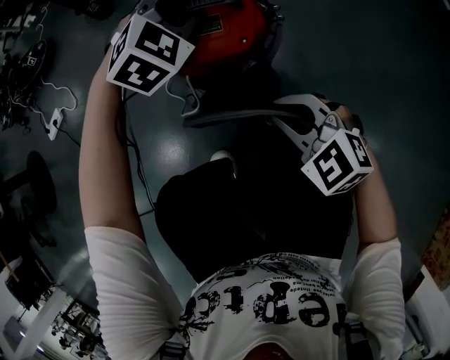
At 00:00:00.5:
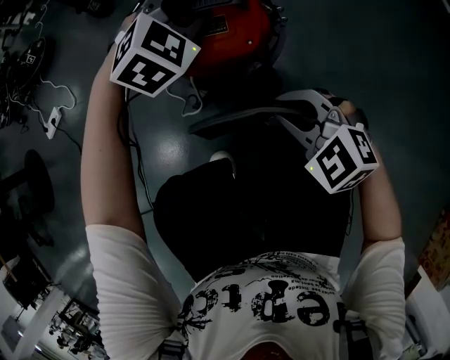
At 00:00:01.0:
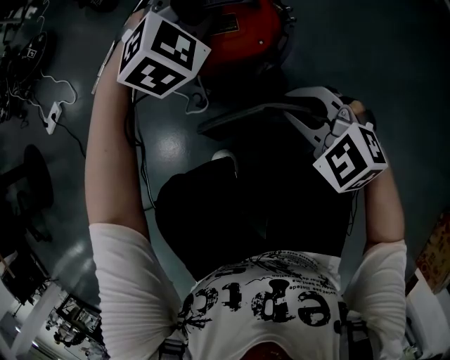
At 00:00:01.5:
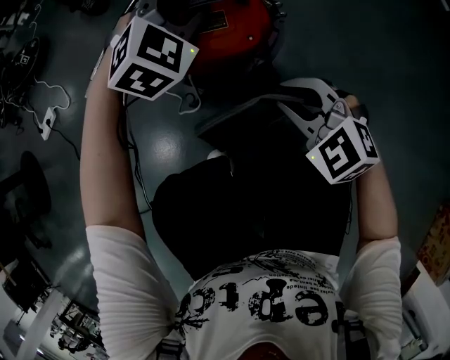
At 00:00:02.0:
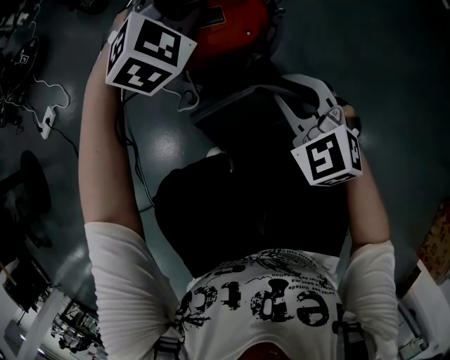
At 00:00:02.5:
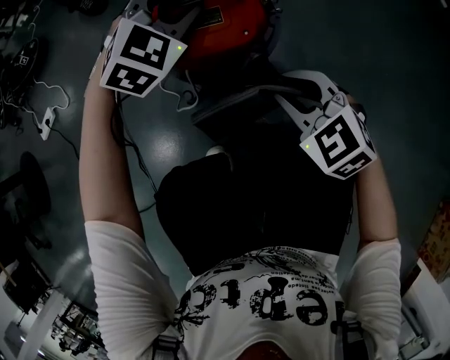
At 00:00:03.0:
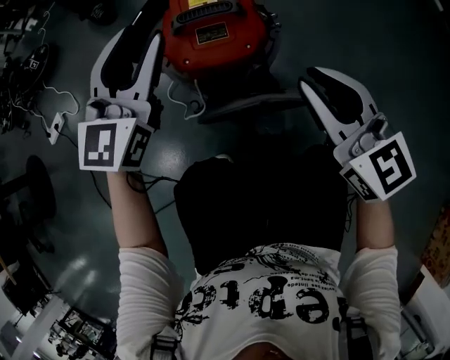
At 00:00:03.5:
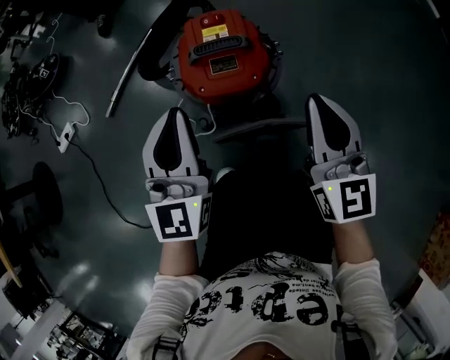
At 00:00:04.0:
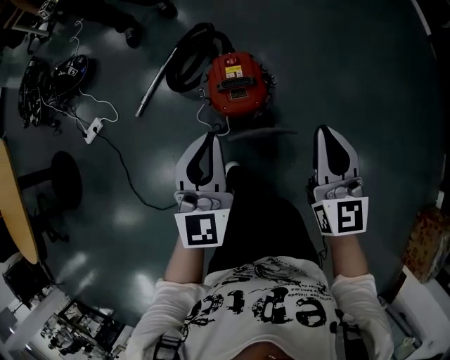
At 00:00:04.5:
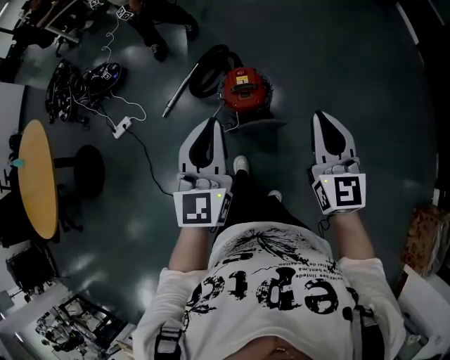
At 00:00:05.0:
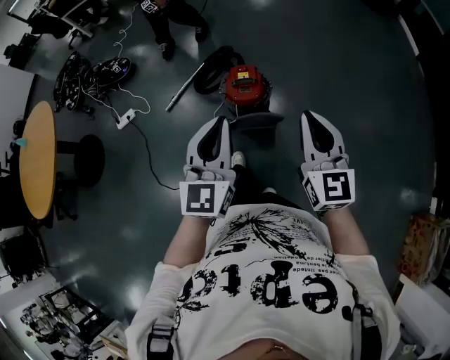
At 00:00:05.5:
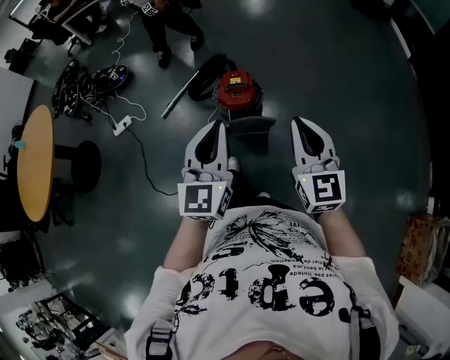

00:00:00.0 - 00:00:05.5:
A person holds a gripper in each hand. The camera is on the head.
00:00:00.0 - 00:00:02.0: The grippers stay close to where they were, moving slightly.
00:00:02.0 - 00:00:03.5: The right gripper is displaced upward by roughly 20 cm, and angles its fingers upward, by approximately 30 degrees; the left gripper goes some 25 cm backward, upward and to the left, tips its fingers upward by some 40 degrees, and closes up.
00:00:03.5 - 00:00:05.5: The grippers both shift upward and backward by some 60 cm.

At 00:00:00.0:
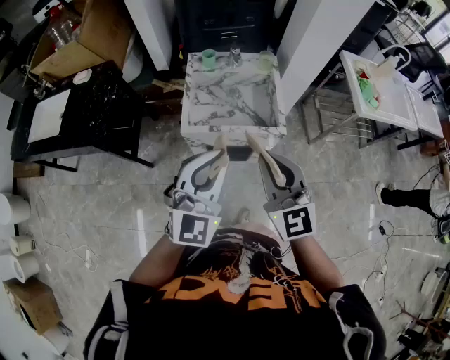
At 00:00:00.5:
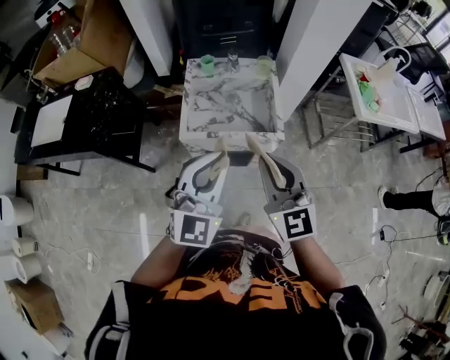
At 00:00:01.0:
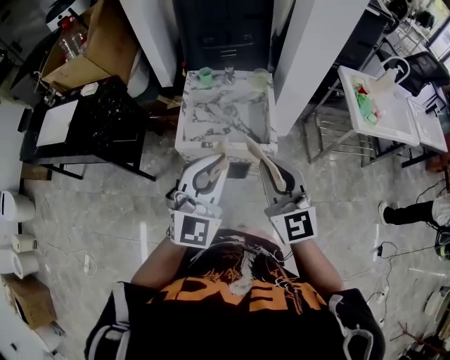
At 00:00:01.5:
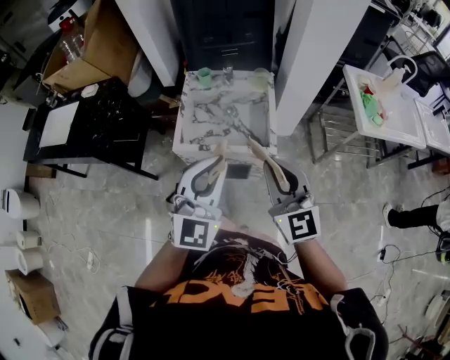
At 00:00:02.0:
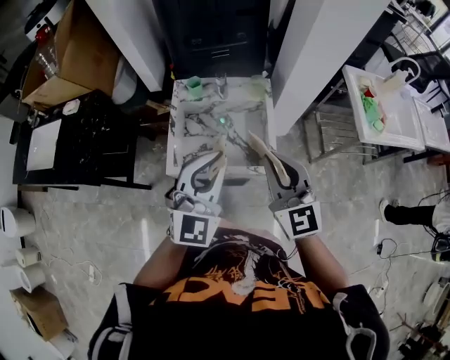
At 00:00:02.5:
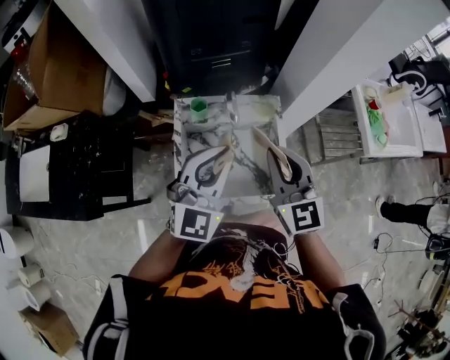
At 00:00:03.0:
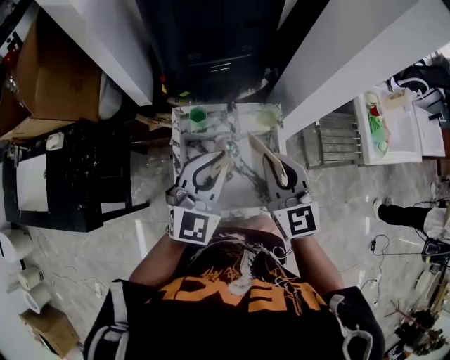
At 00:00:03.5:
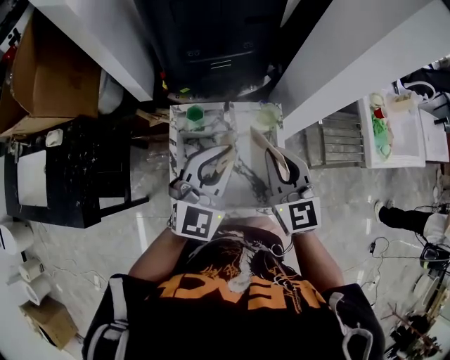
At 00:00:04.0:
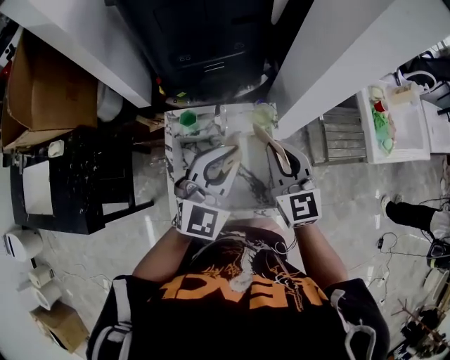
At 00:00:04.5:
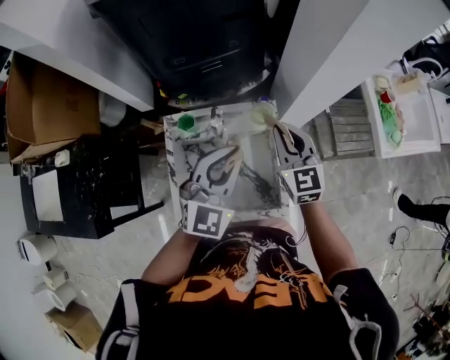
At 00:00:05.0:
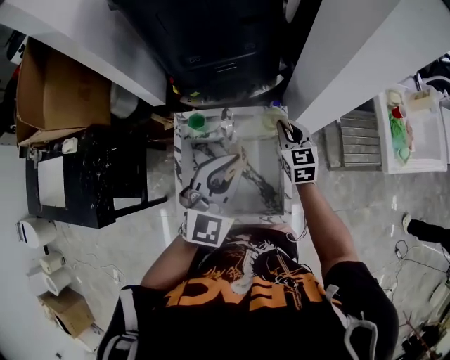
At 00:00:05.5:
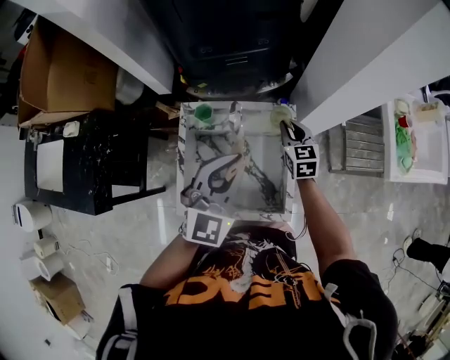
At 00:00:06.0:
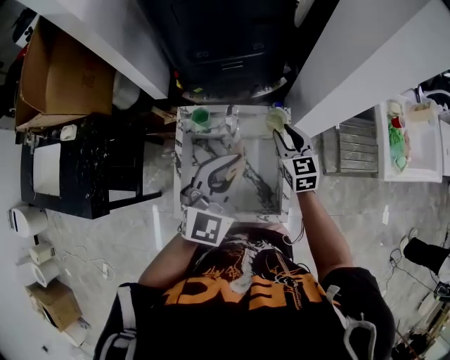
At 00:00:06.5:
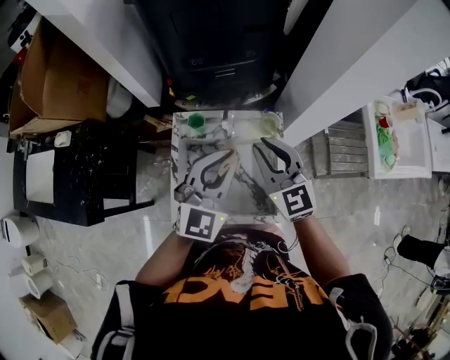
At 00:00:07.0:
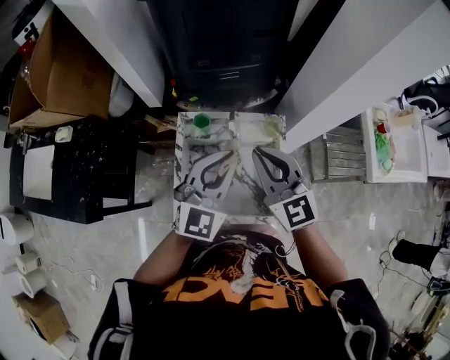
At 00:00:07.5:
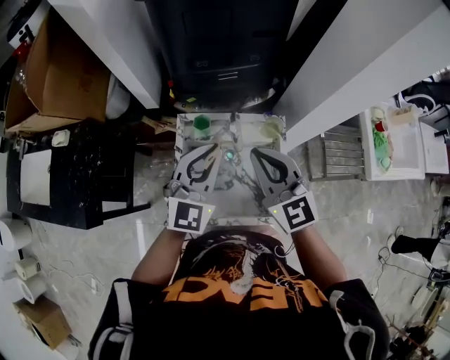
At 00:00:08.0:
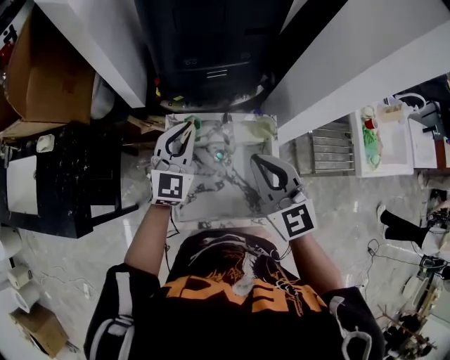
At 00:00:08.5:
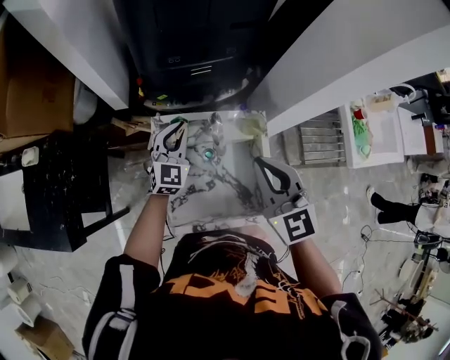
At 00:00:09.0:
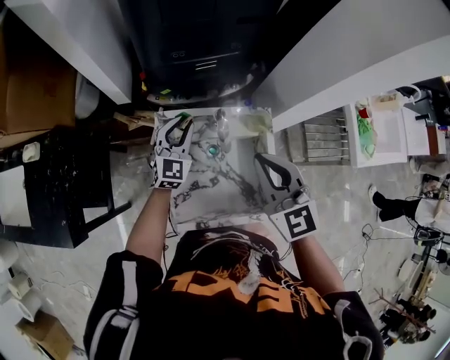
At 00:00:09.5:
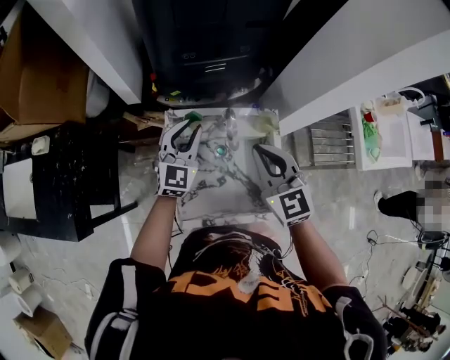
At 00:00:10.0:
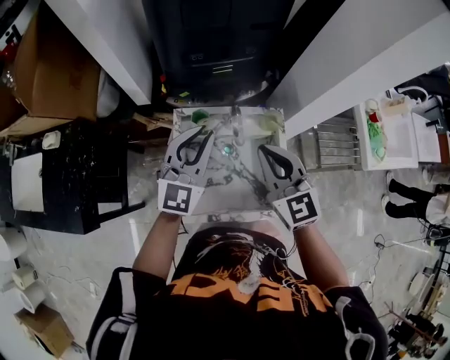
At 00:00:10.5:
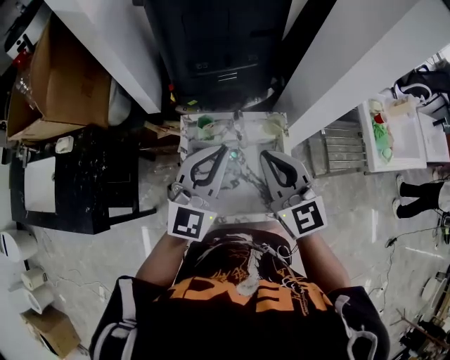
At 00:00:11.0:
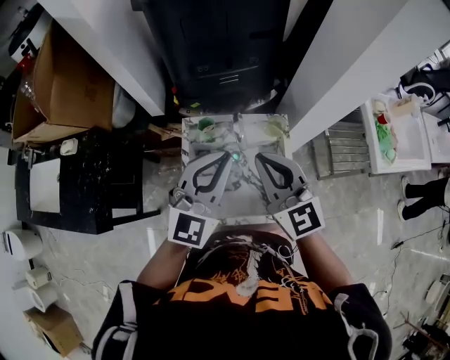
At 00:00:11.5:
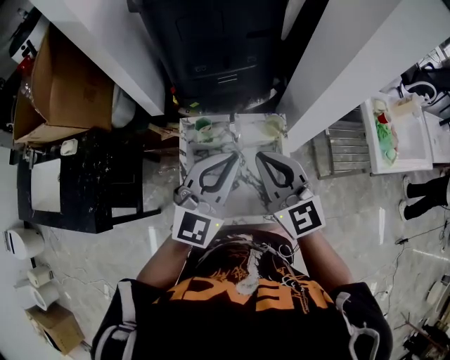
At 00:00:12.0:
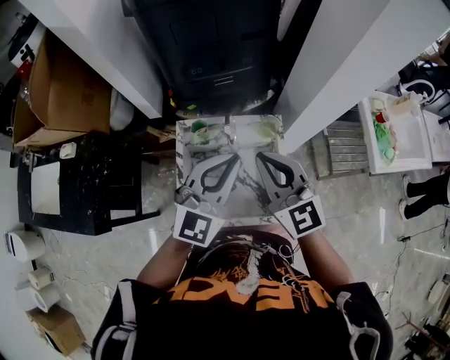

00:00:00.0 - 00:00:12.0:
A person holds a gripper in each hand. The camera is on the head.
00:00:00.0 - 00:00:02.0: Both grippers move forward and to the right, roughly 20 cm.
00:00:02.0 - 00:00:04.0: The two grippers go about 25 cm forward.
00:00:04.0 - 00:00:06.0: The right gripper is displaced downward and forward by about 15 cm, and opens.
00:00:06.0 - 00:00:08.0: The right gripper heads upward, to the left and backward, covering roughly 25 cm, changes its angle by about 20 degrees, and closes. Meanwhile the left gripper travels to the left and forward by approximately 20 cm.
00:00:08.0 - 00:00:10.0: The left gripper moves backward, approximately 5 cm, and moves approximately 15 cm downward and comes back.
00:00:10.0 - 00:00:12.0: The left gripper is displaced to the right, backward and upward by approximately 15 cm. Meanwhile the right gripper shifts by about 5 cm.

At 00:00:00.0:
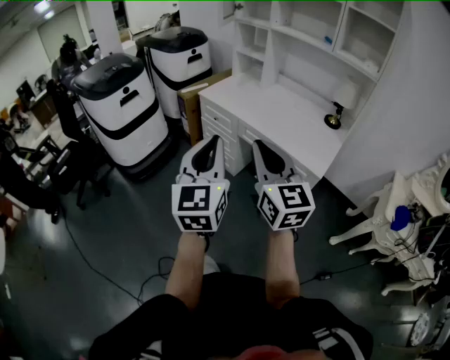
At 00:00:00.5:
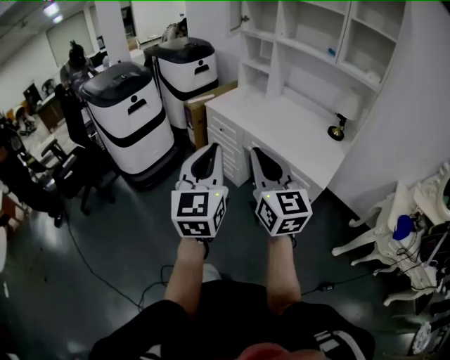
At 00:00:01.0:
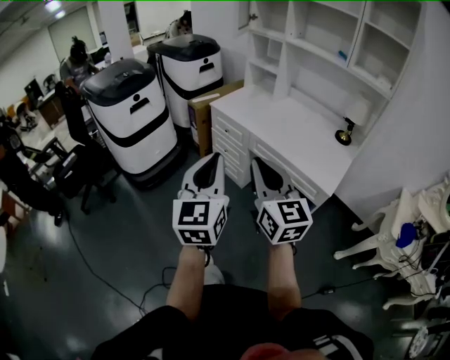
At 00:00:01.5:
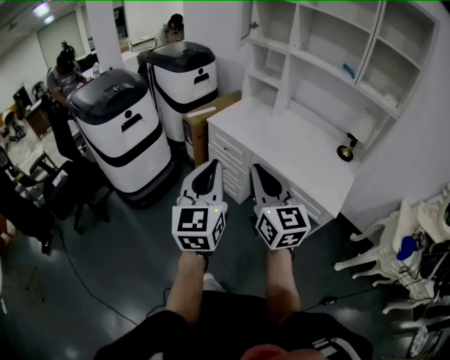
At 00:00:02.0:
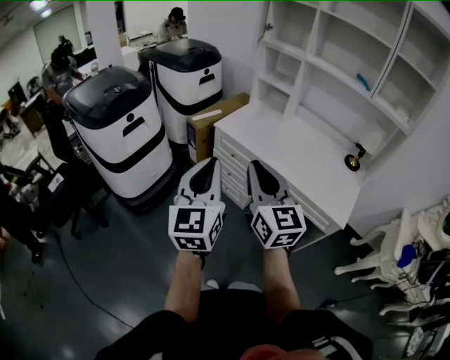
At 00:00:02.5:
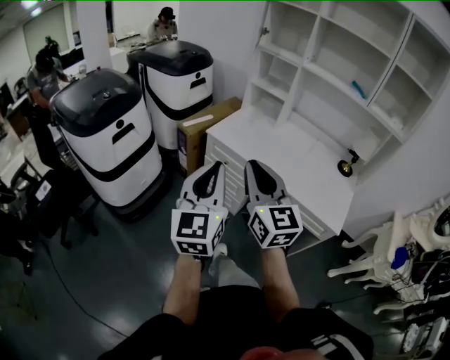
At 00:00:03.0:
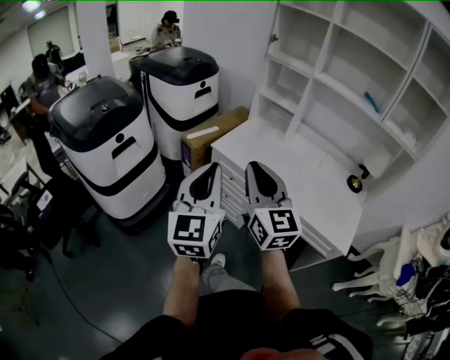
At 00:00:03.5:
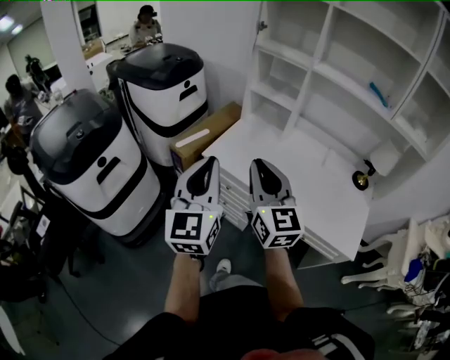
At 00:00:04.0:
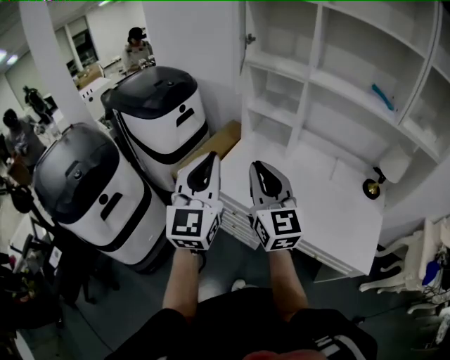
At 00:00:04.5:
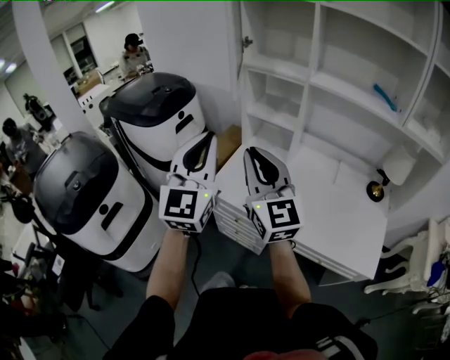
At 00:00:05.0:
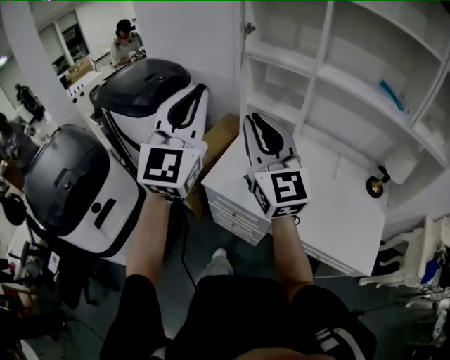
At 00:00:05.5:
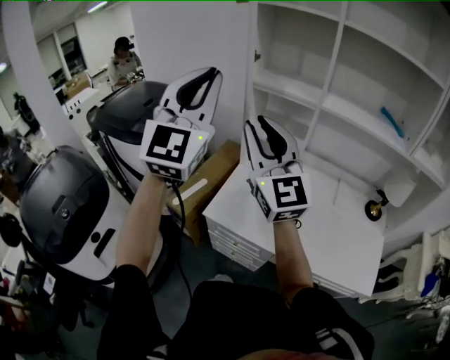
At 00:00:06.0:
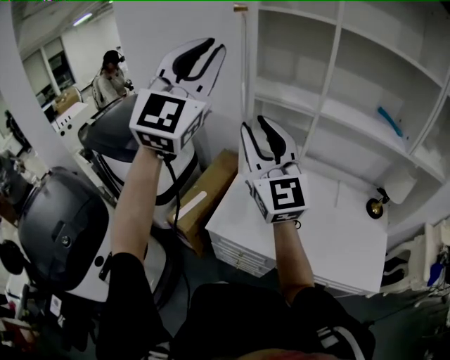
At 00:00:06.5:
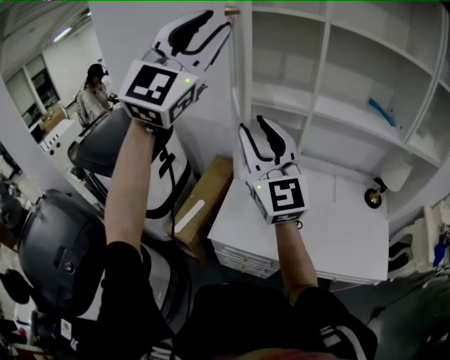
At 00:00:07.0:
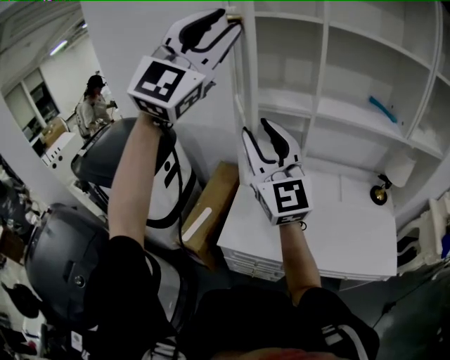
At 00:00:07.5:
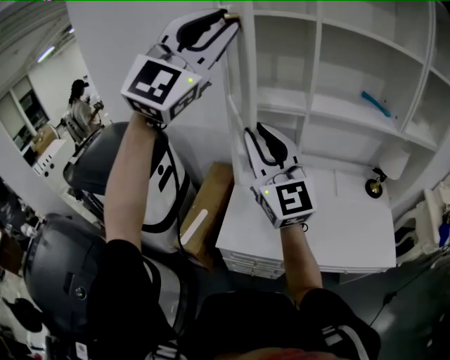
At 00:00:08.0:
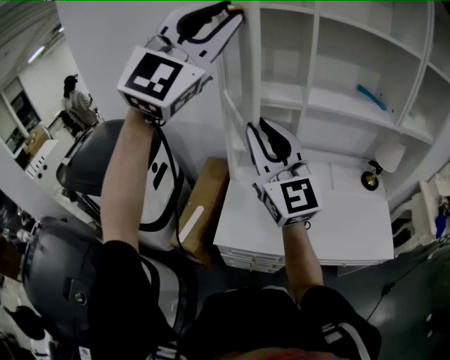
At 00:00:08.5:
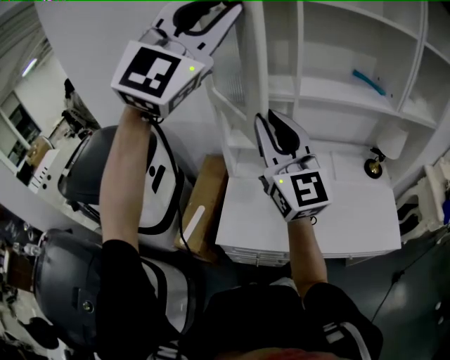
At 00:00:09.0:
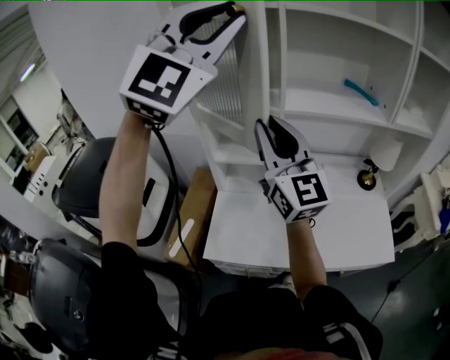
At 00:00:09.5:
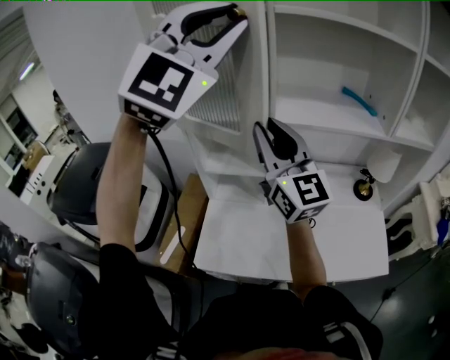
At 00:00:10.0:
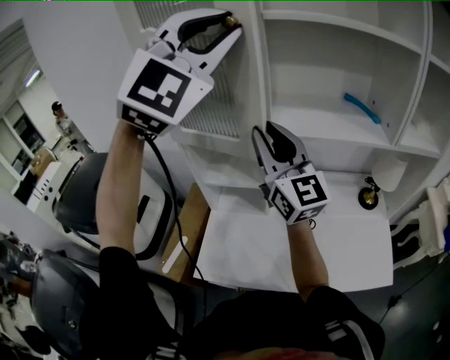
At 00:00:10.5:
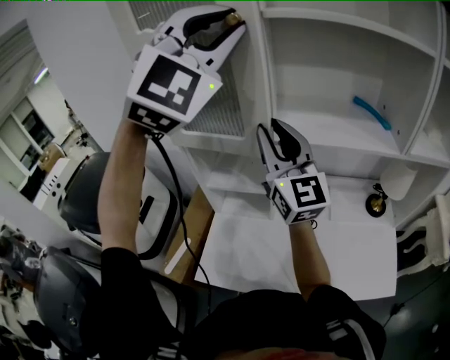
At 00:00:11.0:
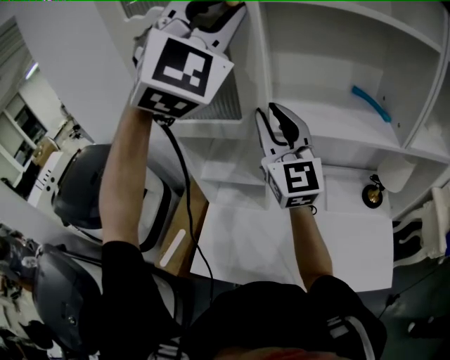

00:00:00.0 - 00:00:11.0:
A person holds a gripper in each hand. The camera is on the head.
00:00:00.0 - 00:00:02.0: The two grippers go about 30 cm forward and to the left.
00:00:02.0 - 00:00:03.5: The grippers both shift forward by approximately 30 cm.
00:00:03.5 - 00:00:05.5: Both grippers travel together forward and upward, roughly 35 cm. The left gripper turns by some 40 degrees. Meanwhile the right gripper rotates some 20 degrees.
00:00:05.5 - 00:00:07.5: The left gripper is displaced upward by some 15 cm, changes its angle by about 30 degrees, and opens its fingers, while the right gripper shifts by roughly 5 cm.
00:00:07.5 - 00:00:09.0: Both grippers travel together to the right and forward, some 10 cm.
00:00:09.0 - 00:00:11.0: The left gripper is displaced forward and to the right by approximately 15 cm; the right gripper travels forward by about 15 cm.
